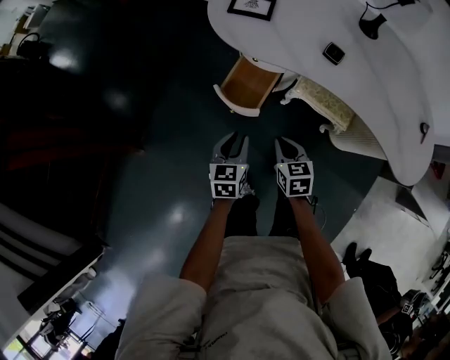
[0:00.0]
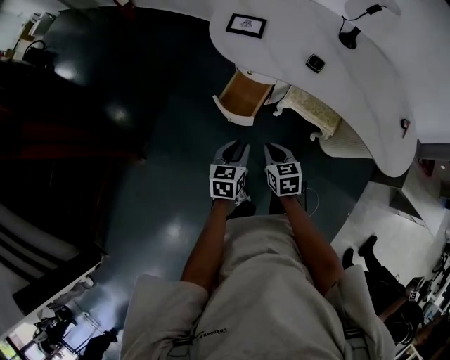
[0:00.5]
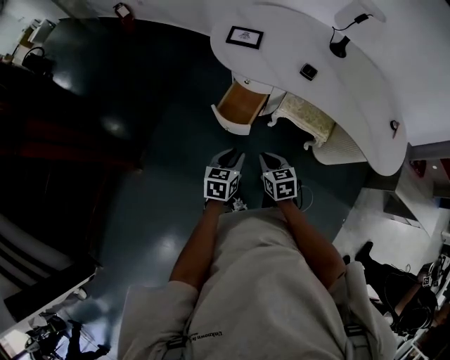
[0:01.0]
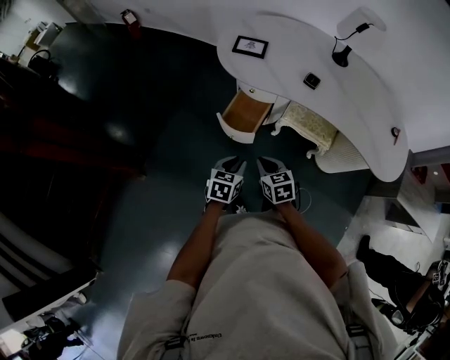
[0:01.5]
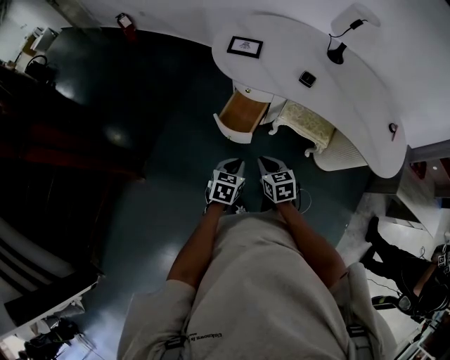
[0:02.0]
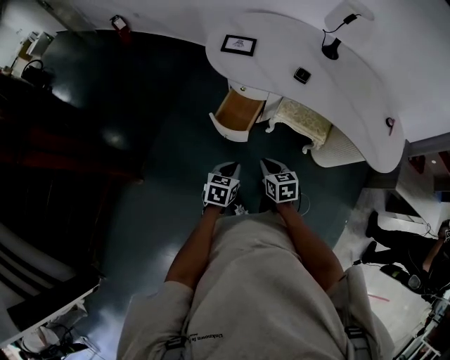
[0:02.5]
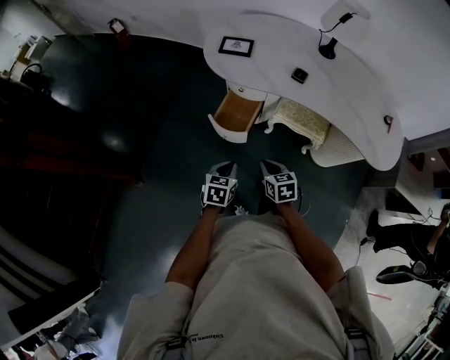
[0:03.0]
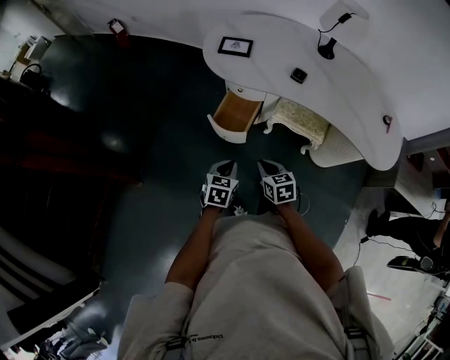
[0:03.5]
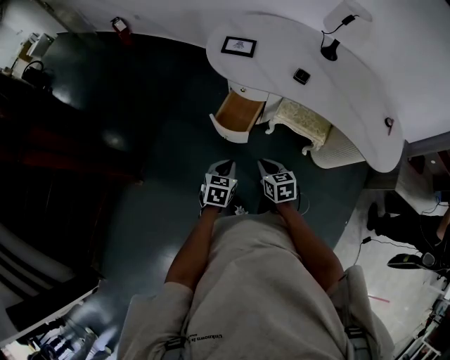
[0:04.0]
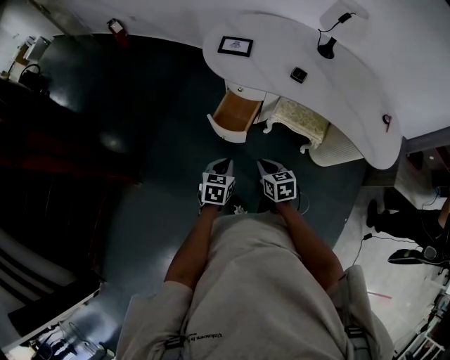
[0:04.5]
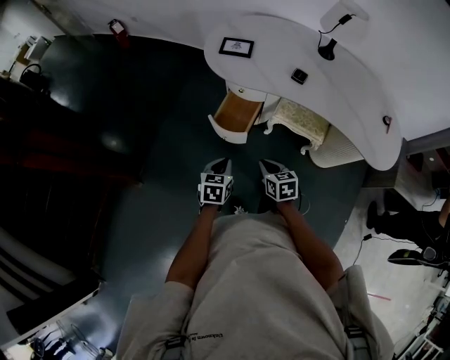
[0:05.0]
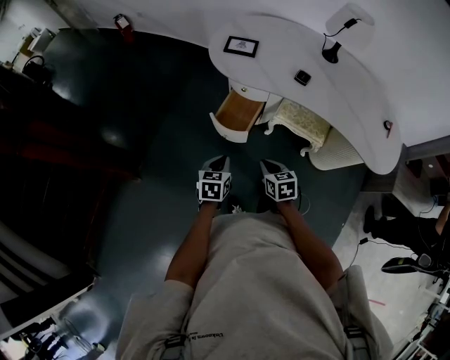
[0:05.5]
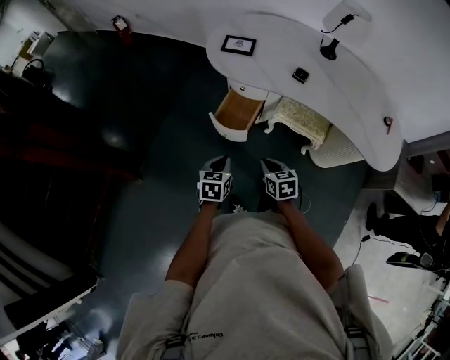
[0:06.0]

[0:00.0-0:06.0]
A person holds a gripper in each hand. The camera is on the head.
0:00.0 to 0:02.0: The right gripper moves upward and backward, approximately 10 cm, while the left gripper shifts some 10 cm backward.
0:02.0 to 0:06.0: There are only small adjustments of the grippers.

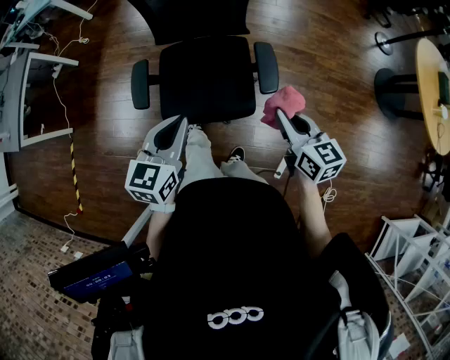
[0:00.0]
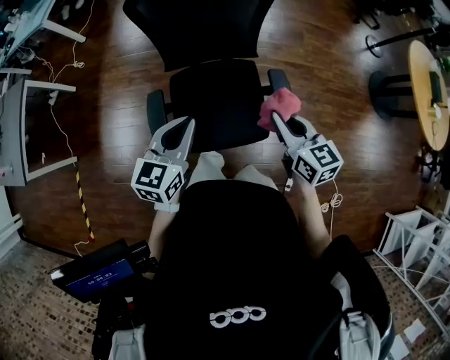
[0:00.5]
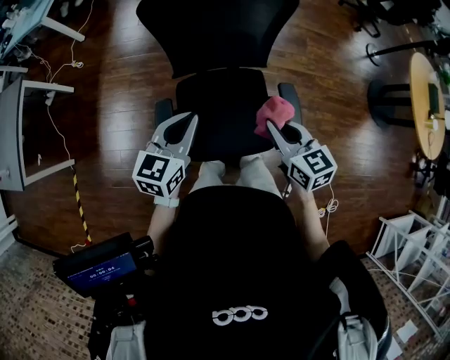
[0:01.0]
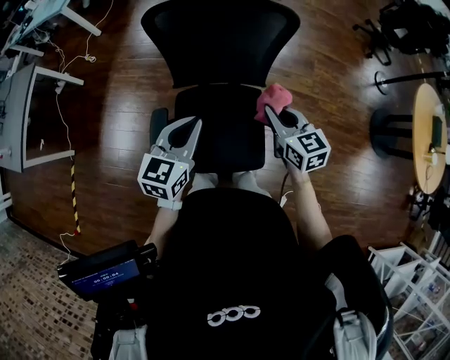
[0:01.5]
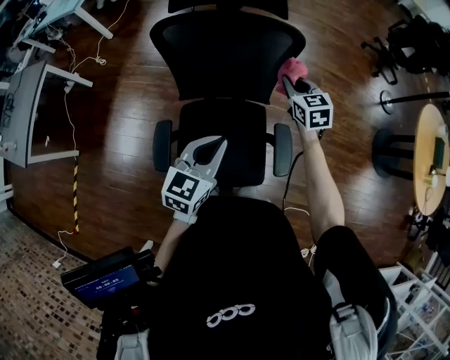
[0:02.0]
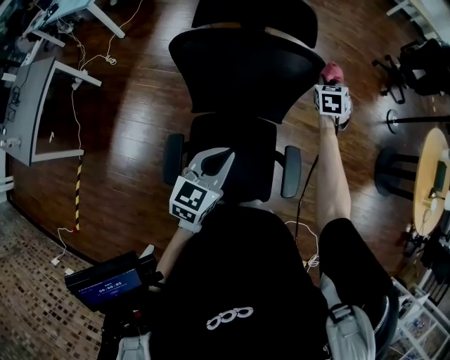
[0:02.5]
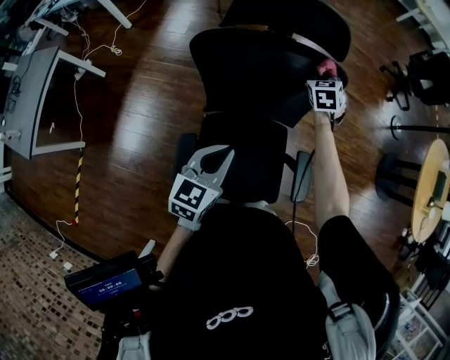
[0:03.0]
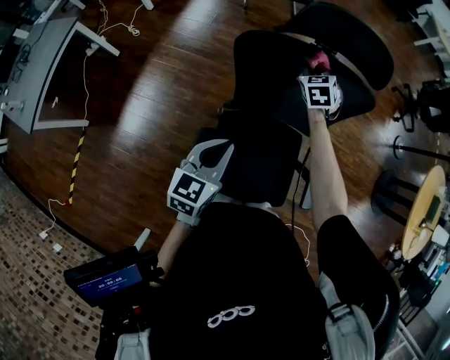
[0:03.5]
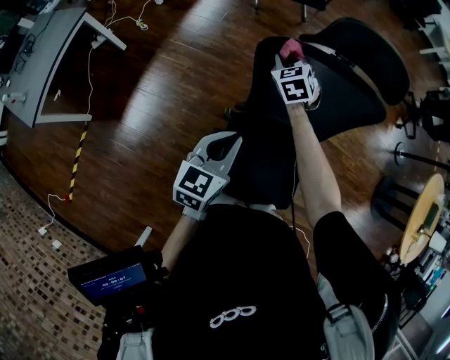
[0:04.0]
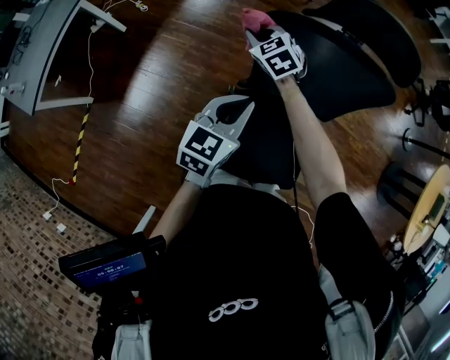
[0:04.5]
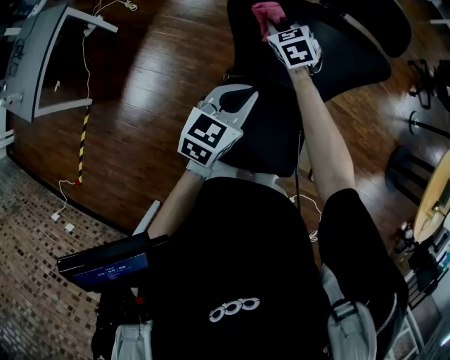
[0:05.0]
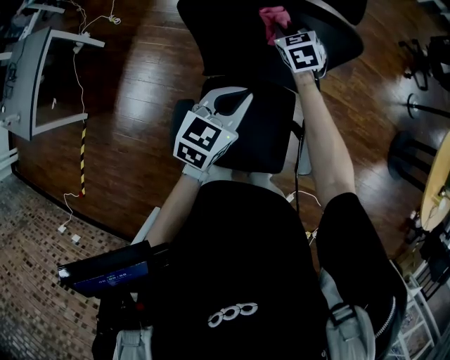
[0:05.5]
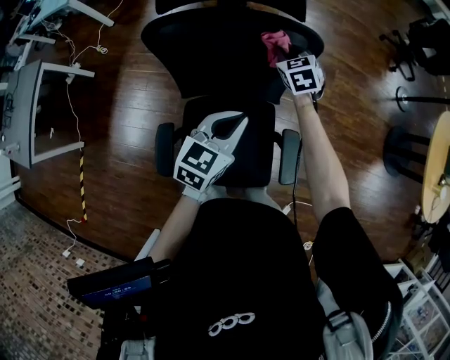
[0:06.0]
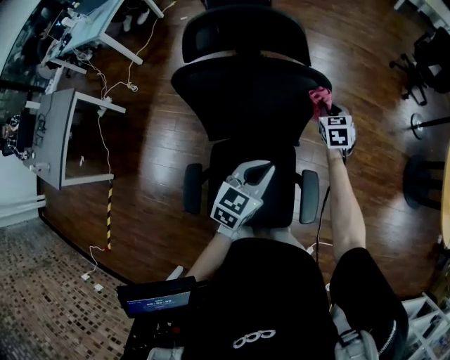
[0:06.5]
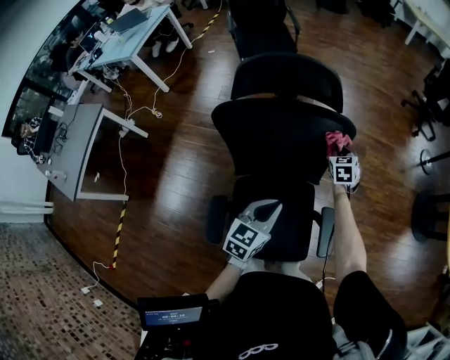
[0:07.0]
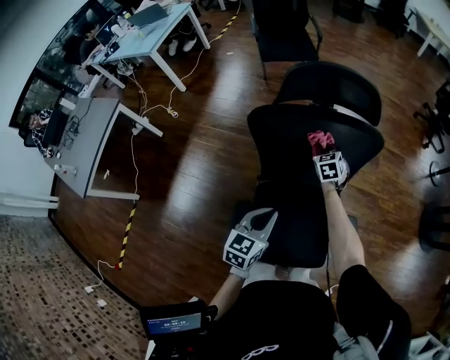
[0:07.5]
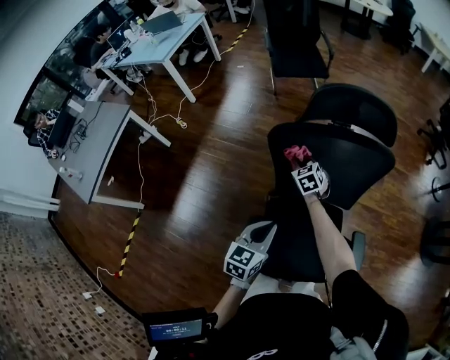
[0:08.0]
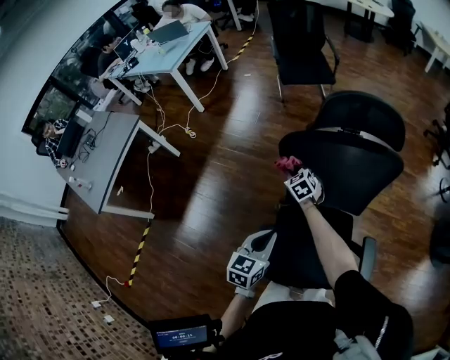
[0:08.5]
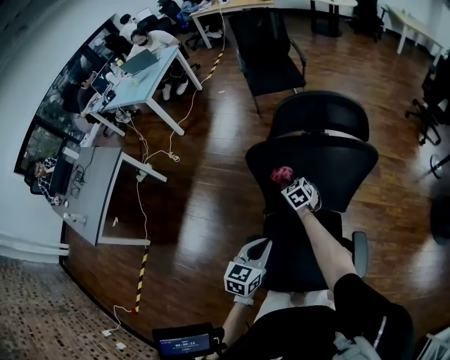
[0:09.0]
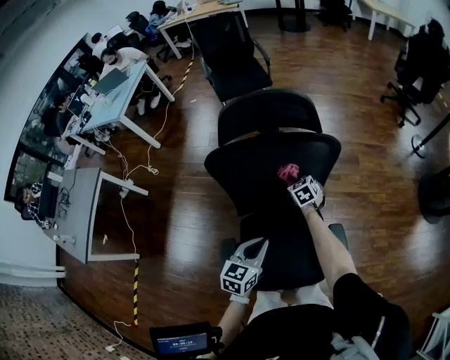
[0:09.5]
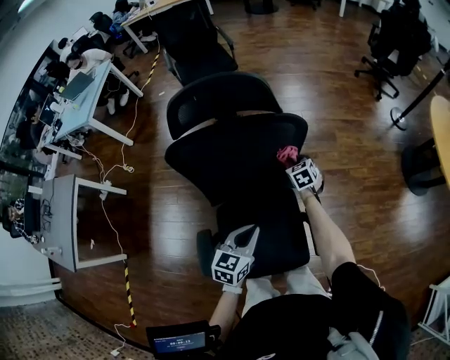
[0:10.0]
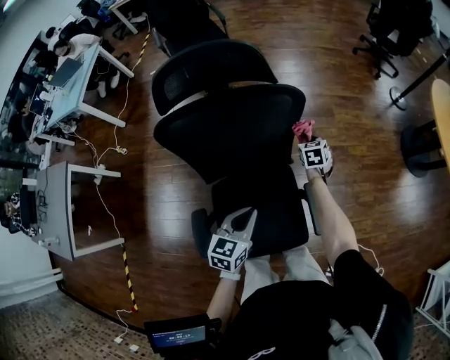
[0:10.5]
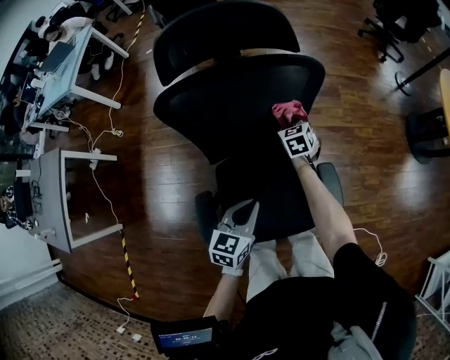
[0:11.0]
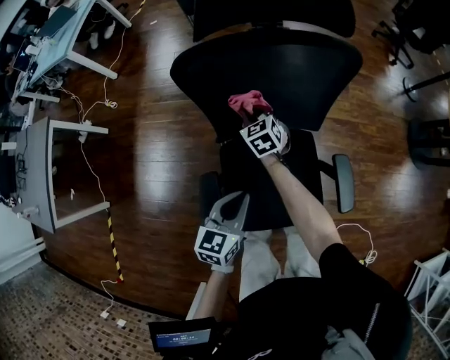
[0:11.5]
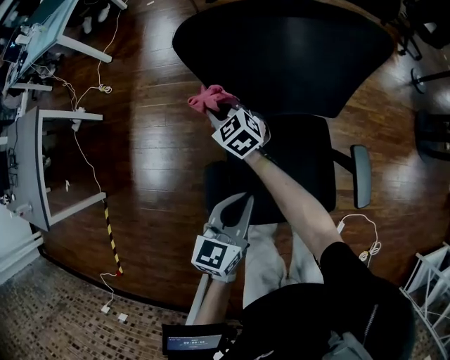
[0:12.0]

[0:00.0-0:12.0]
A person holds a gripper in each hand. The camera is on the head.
0:00.0 to 0:02.0: The left gripper travels forward by roughly 20 cm; the right gripper moves forward, approximately 40 cm, and rotates roughly 30 degrees.
0:02.0 to 0:04.0: The right gripper travels to the left by some 40 cm, and changes its angle by approximately 20 degrees. The left gripper moves to the left, approximately 25 cm.
0:04.0 to 0:06.0: Both grippers move to the right, roughly 30 cm.
0:06.0 to 0:08.0: The right gripper heads to the left, covering approximately 25 cm, while the left gripper is displaced to the left and backward by some 25 cm.
0:08.0 to 0:10.0: The left gripper shifts roughly 20 cm to the right, while the right gripper travels to the right by roughly 35 cm, and rotates approximately 20 degrees.
0:10.0 to 0:12.0: The left gripper moves approximately 20 cm, while the right gripper changes place by some 40 cm, and turns by about 30 degrees.

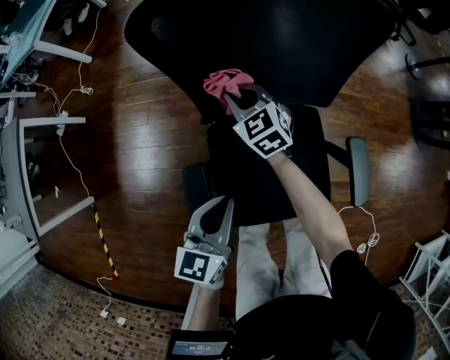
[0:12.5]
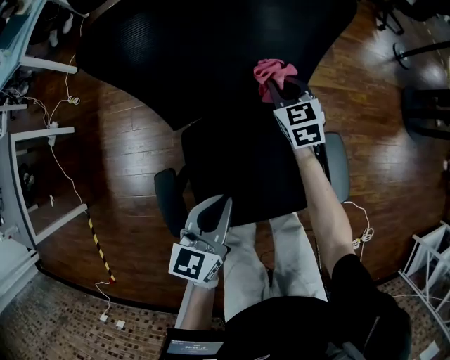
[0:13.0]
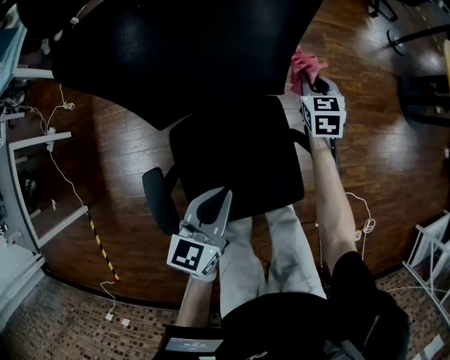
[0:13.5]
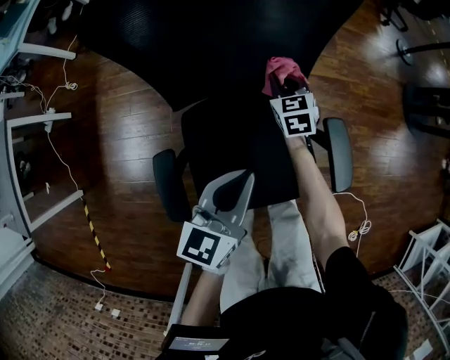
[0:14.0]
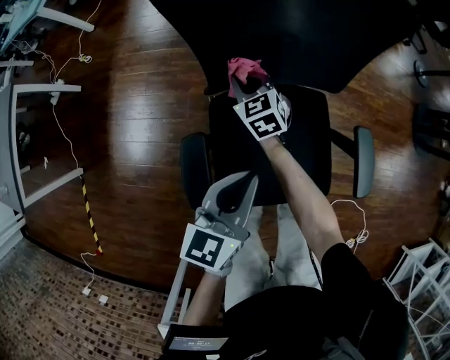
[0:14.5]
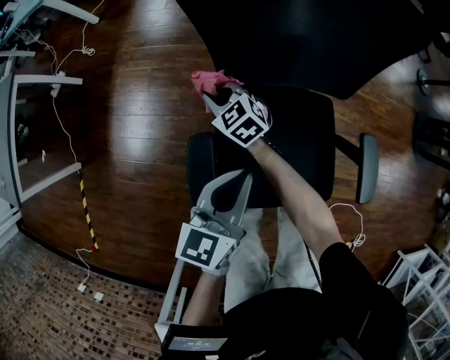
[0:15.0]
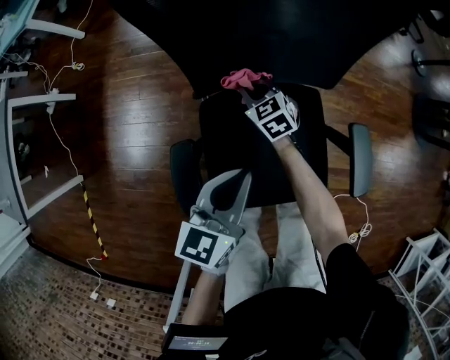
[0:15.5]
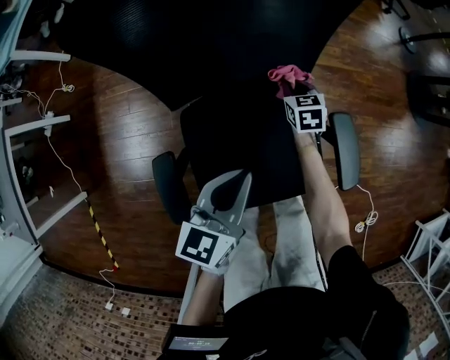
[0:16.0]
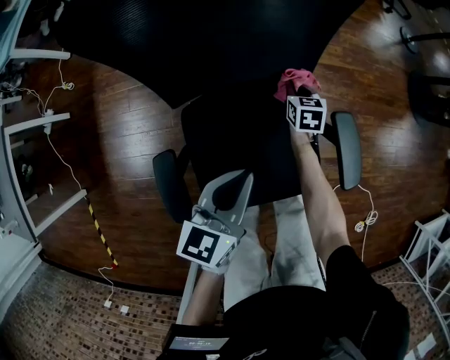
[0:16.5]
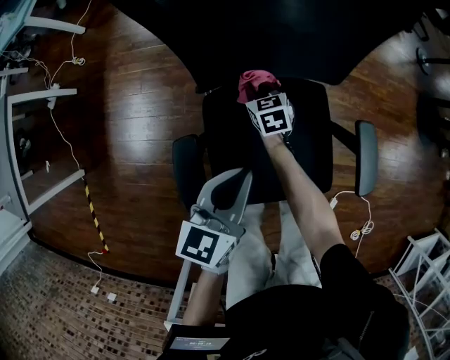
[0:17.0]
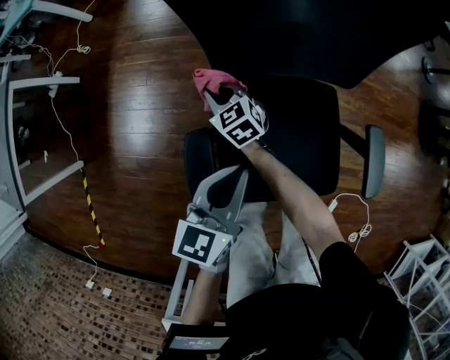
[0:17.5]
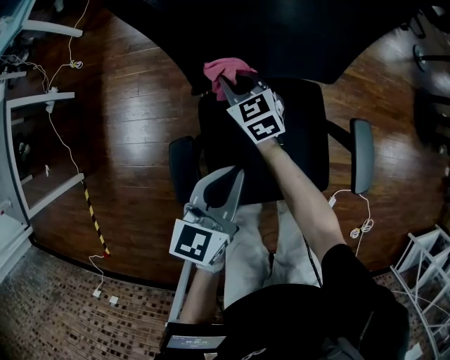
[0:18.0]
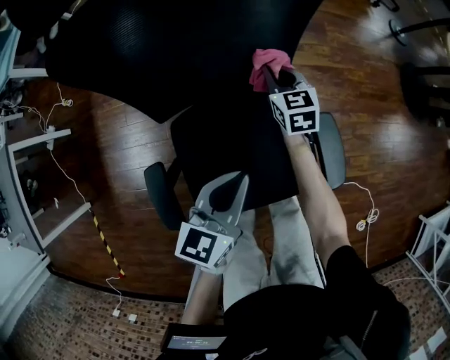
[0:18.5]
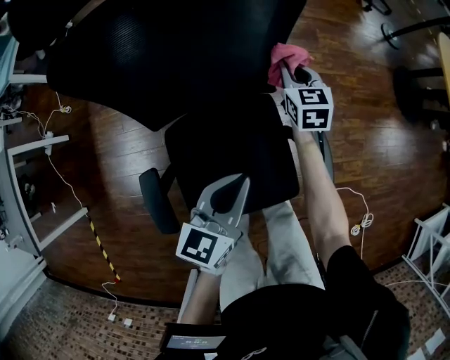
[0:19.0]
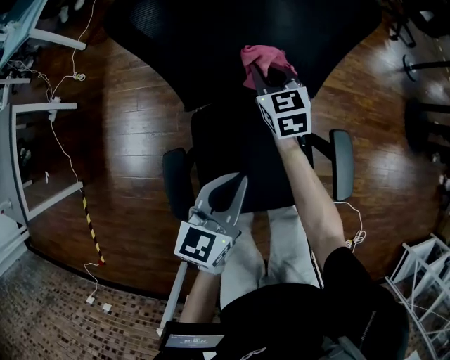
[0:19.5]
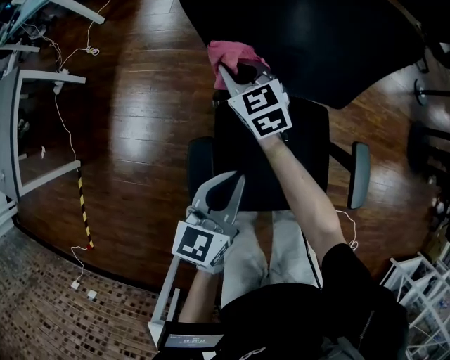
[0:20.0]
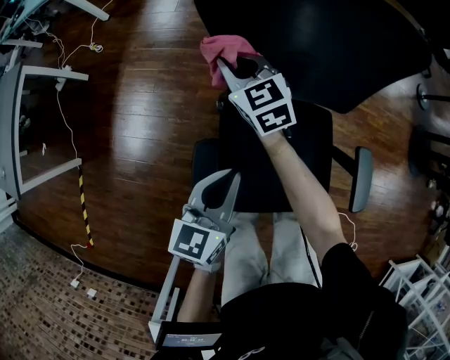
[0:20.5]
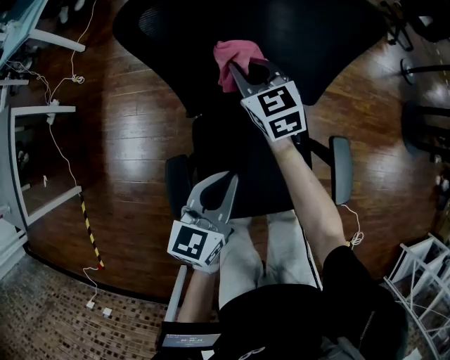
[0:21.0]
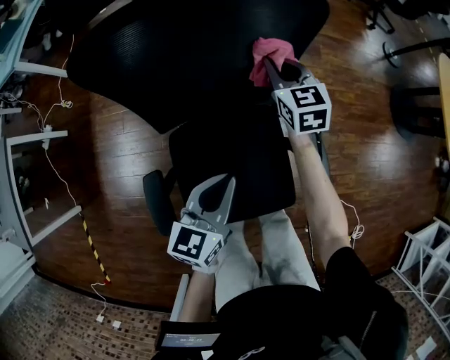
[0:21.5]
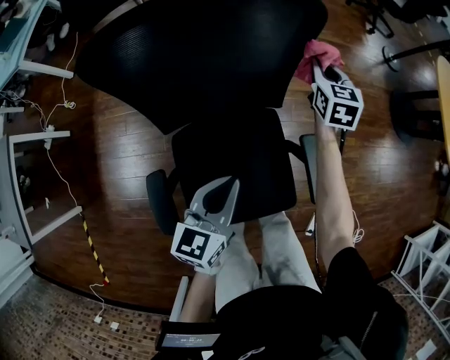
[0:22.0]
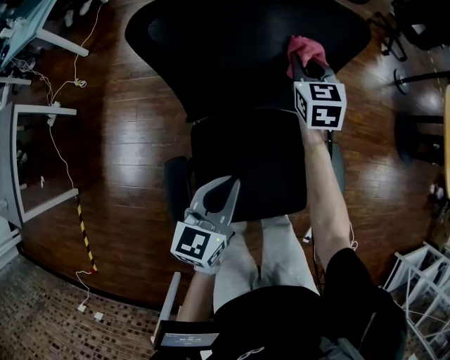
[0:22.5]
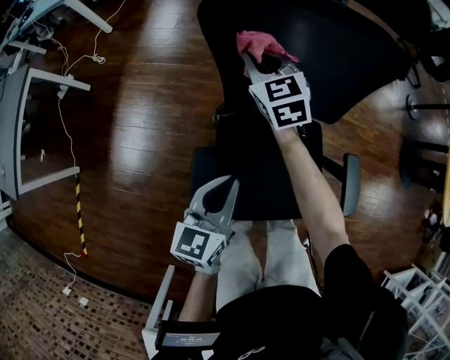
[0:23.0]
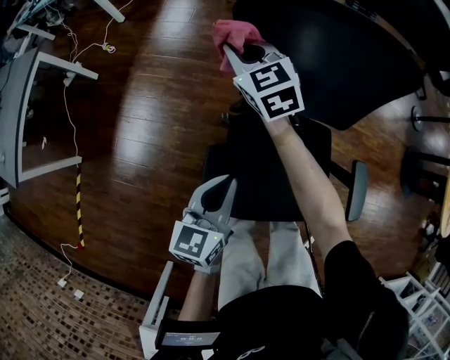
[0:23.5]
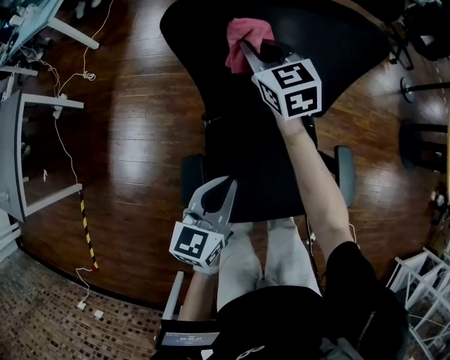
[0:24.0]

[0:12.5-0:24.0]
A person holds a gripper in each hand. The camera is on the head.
0:12.5 to 0:14.5: The left gripper goes to the right and returns, some 15 cm each way. Meanwhile the right gripper is displaced downward by some 5 cm, and reaches some 35 cm to the right, then returns.
0:14.5 to 0:16.5: The left gripper moves about 10 cm, while the right gripper shifts by some 30 cm, and turns by roughly 40 degrees.
0:16.5 to 0:18.5: The right gripper is displaced upward by about 10 cm.
0:18.5 to 0:20.0: The right gripper moves some 35 cm, and swivels approximately 30 degrees. The left gripper shifts by some 15 cm.
0:20.0 to 0:22.0: The left gripper moves roughly 15 cm, while the right gripper shifts by approximately 50 cm, and turns by approximately 40 degrees.
0:22.0 to 0:24.0: The left gripper ends up some 15 cm from where it was. Meanwhile the right gripper shifts by some 40 cm, and swivels roughly 40 degrees.
